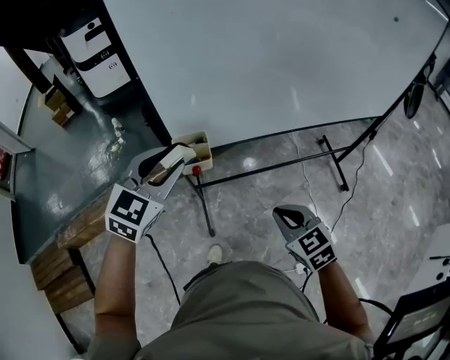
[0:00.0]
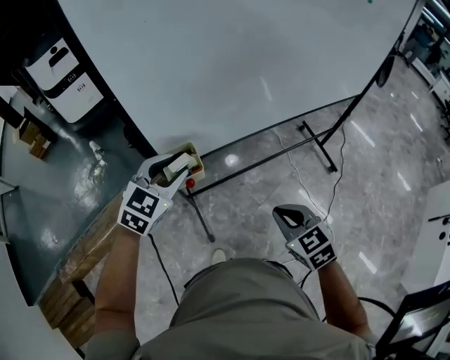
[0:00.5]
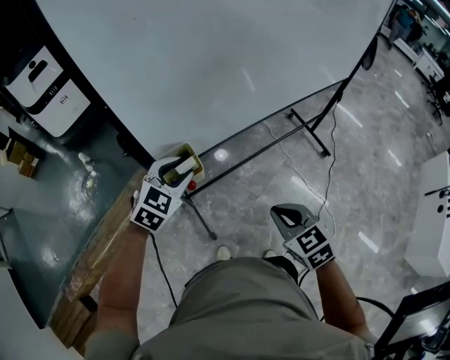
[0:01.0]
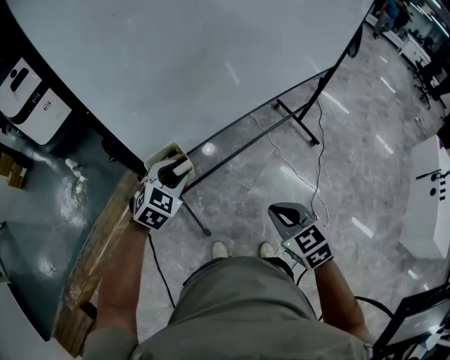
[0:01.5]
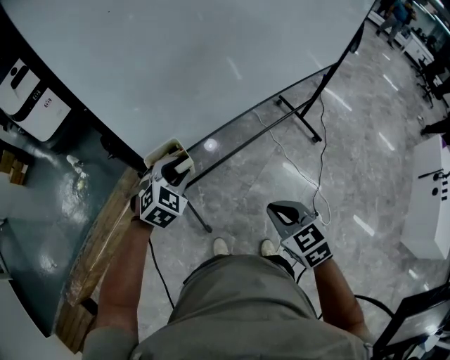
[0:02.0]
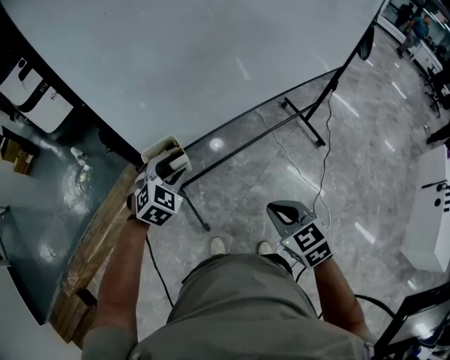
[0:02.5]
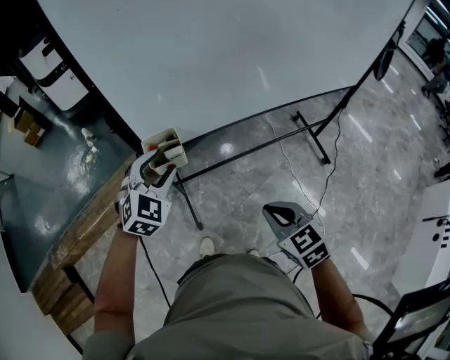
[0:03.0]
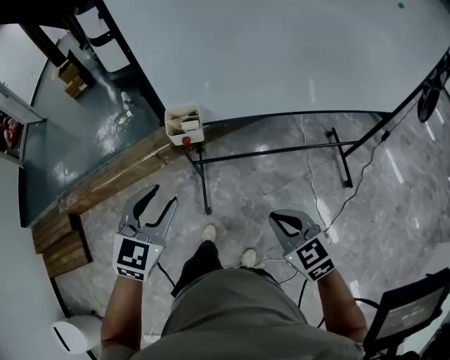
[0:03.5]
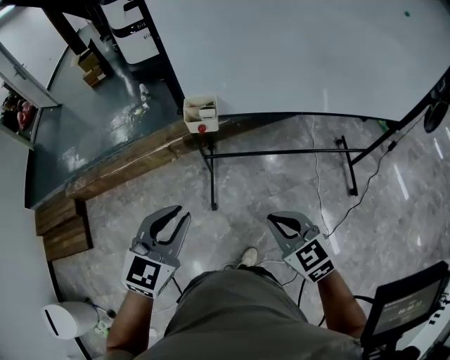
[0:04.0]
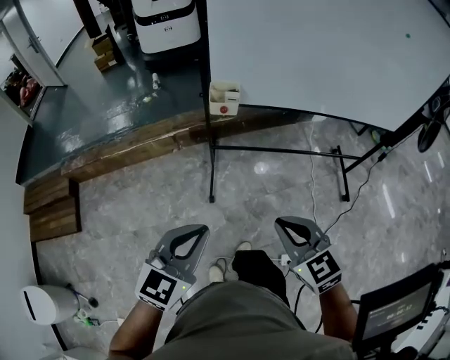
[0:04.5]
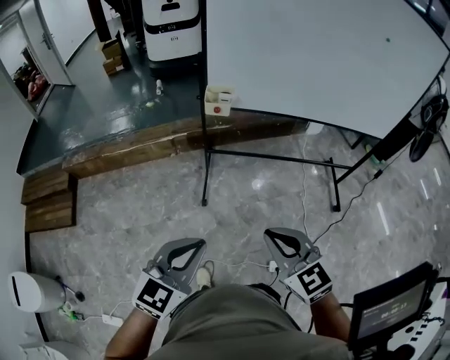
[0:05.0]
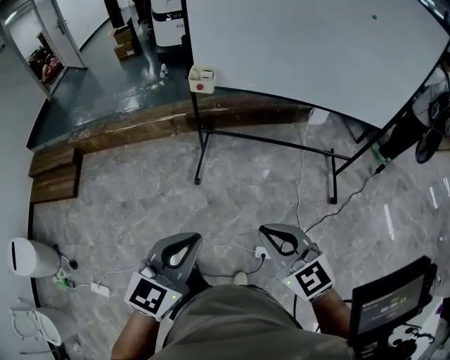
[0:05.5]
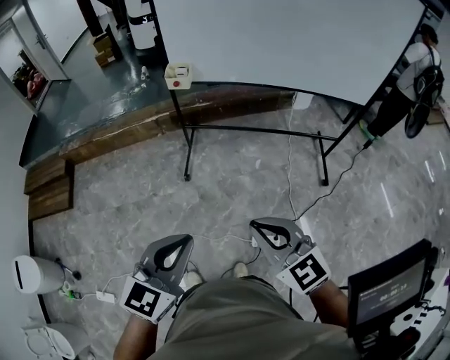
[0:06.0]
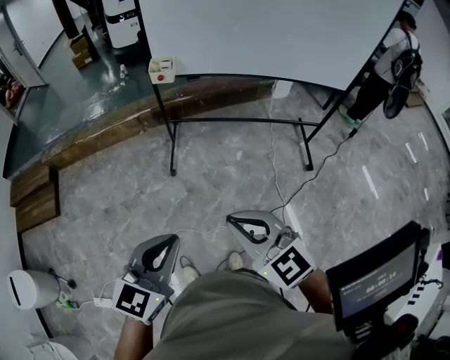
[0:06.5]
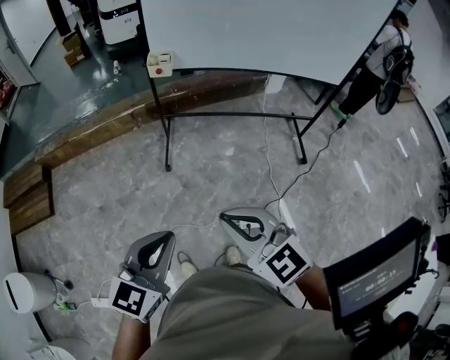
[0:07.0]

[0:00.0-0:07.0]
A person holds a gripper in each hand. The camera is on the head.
0:00.0 to 0:02.0: The right gripper rotates approximately 20 degrees. The left gripper shifts about 20 cm downward and forward, and changes its angle by some 30 degrees.
0:02.0 to 0:03.5: The left gripper moves roughly 25 cm, and swivels roughly 40 degrees. The right gripper ends up about 10 cm from where it was, and changes its angle by about 30 degrees.
0:03.5 to 0:05.0: The grippers both shift backward by some 30 cm. The left gripper closes.
0:05.0 to 0:07.0: The left gripper moves backward and to the right, approximately 20 cm, while the right gripper heads backward, covering some 15 cm.

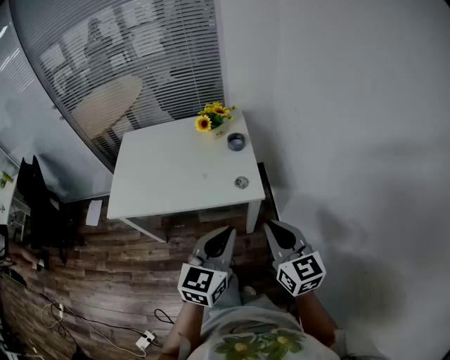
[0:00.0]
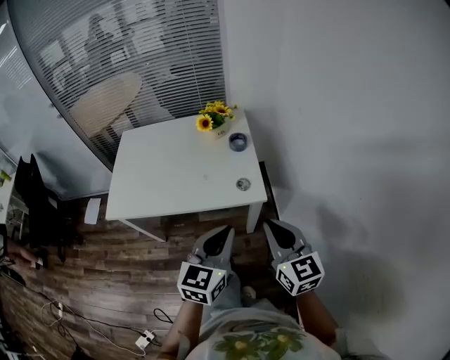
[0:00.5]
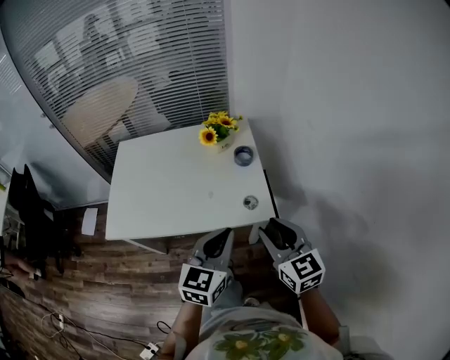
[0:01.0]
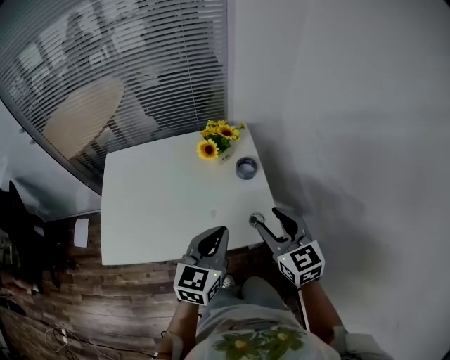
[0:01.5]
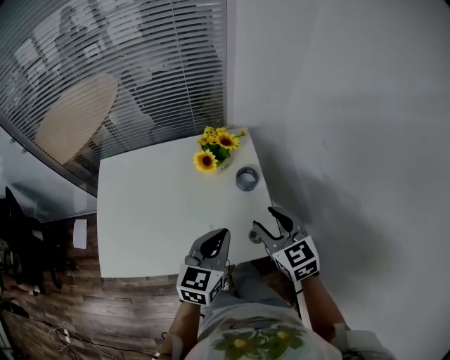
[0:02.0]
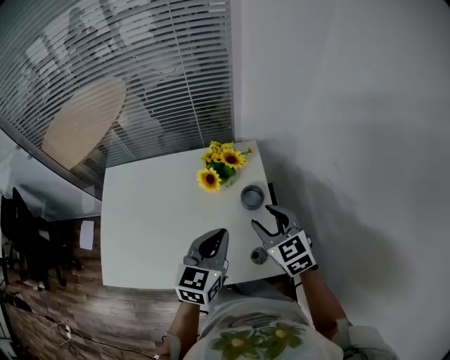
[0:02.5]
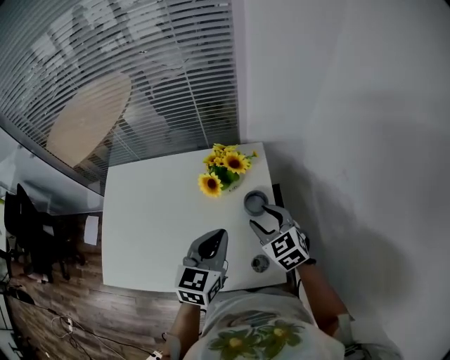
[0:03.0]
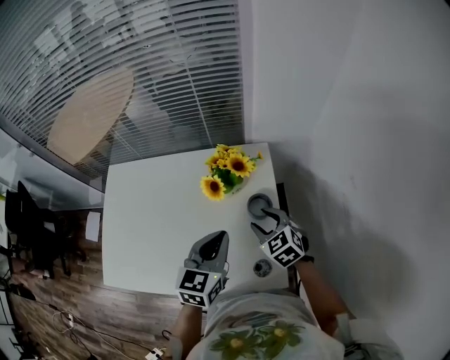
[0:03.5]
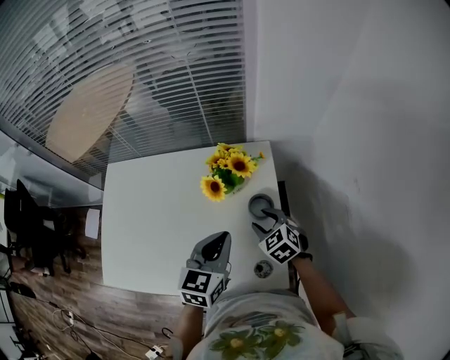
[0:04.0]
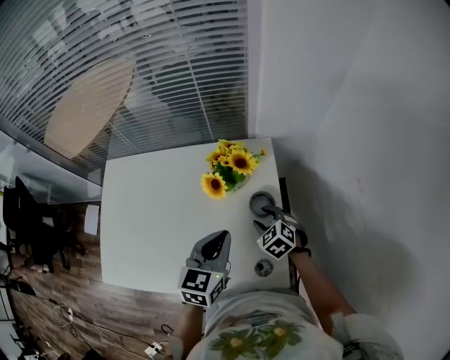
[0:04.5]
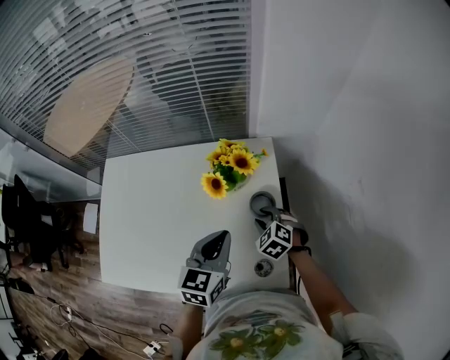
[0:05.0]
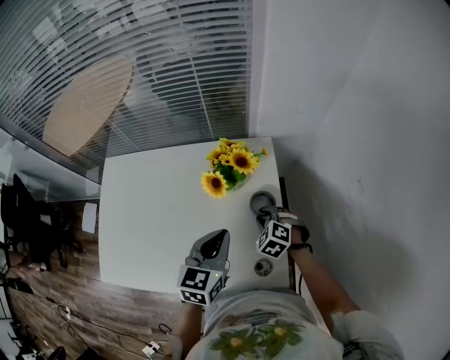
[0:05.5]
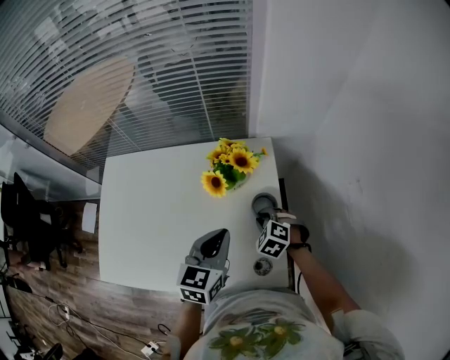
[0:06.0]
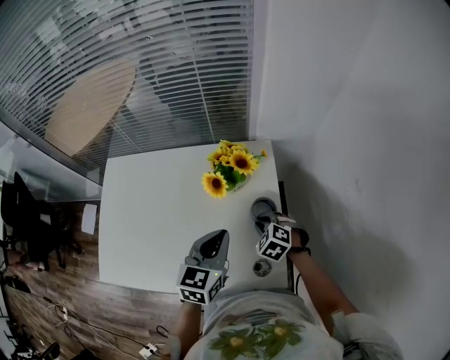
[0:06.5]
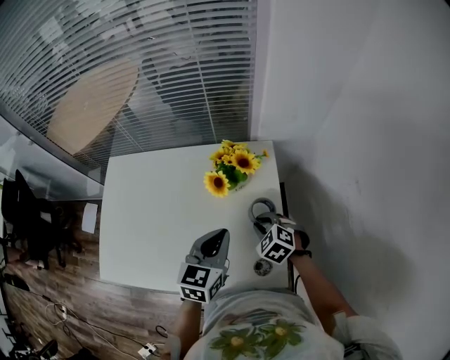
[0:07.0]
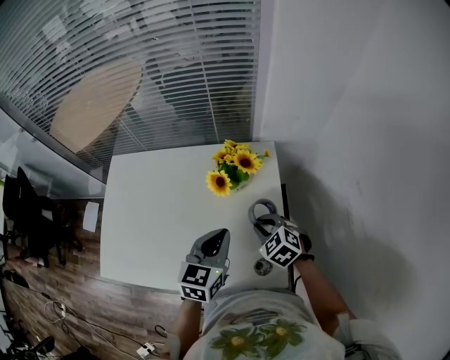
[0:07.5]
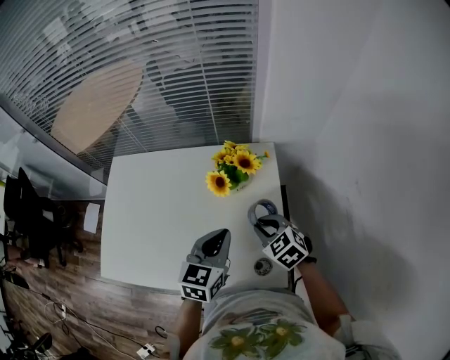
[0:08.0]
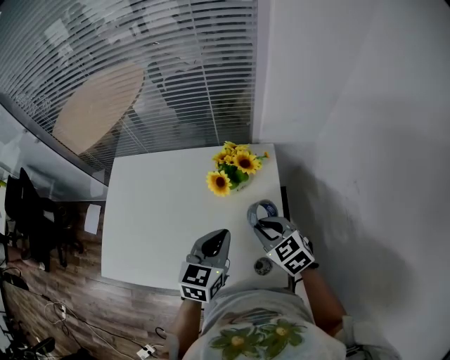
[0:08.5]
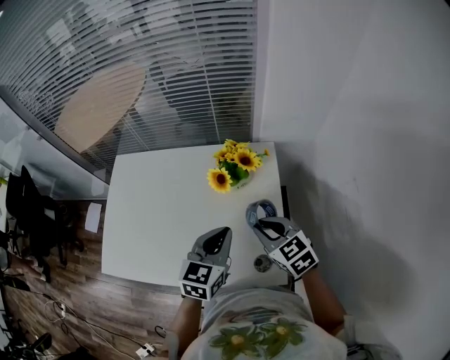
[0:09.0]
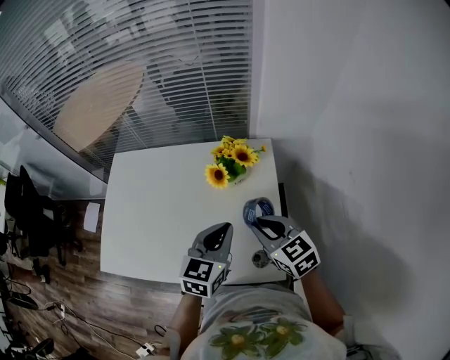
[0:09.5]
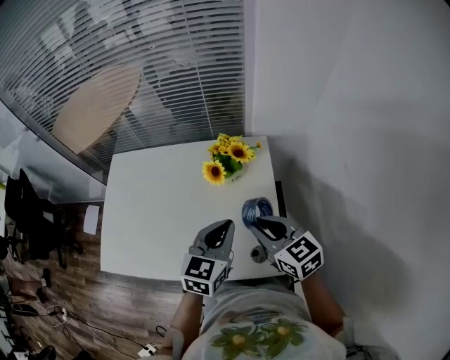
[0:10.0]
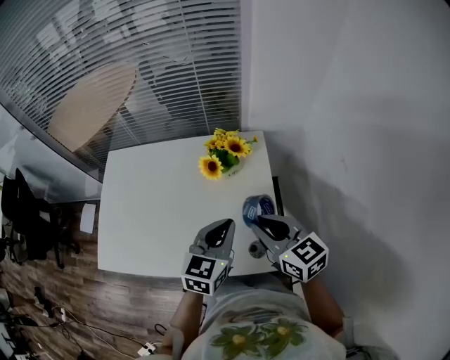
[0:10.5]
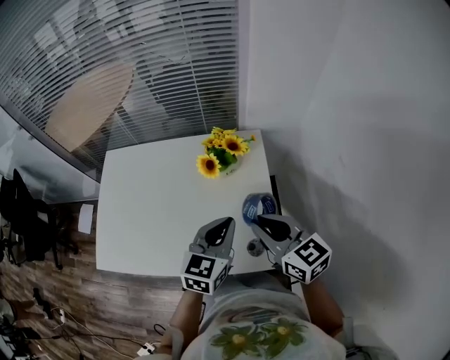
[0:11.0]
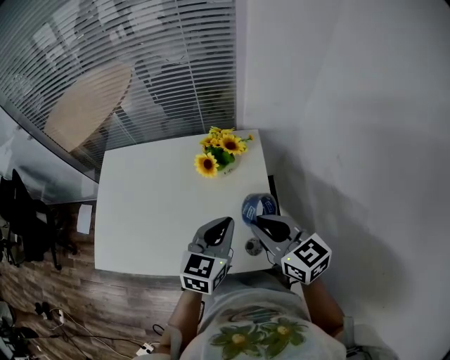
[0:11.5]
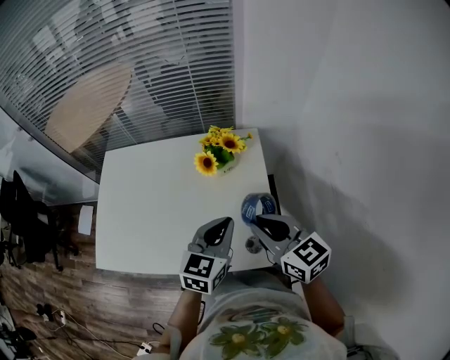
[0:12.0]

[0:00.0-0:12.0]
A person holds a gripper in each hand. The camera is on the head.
0:00.0 to 0:02.0: The grippers both shift forward by about 30 cm. The right gripper swivels approximately 20 degrees, and opens.
0:02.0 to 0:04.0: The right gripper goes roughly 25 cm downward and forward, and swivels roughly 30 degrees, while the left gripper goes roughly 15 cm forward and downward.
0:04.0 to 0:06.0: The right gripper goes roughly 5 cm downward, turns by some 30 degrees, and closes its fingers.
0:06.0 to 0:08.0: The right gripper goes approximately 10 cm upward, and rotates approximately 20 degrees.
0:08.0 to 0:10.0: The right gripper travels upward and backward by about 15 cm, and swivels roughly 30 degrees; the left gripper changes place by some 5 cm.
0:10.0 to 0:12.0: The right gripper moves some 5 cm.

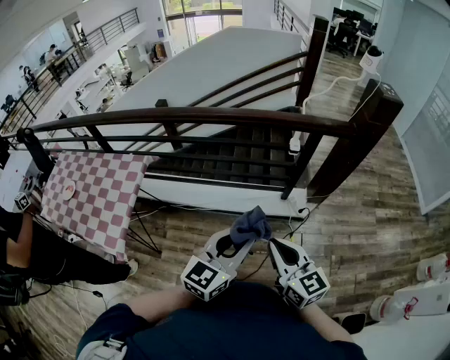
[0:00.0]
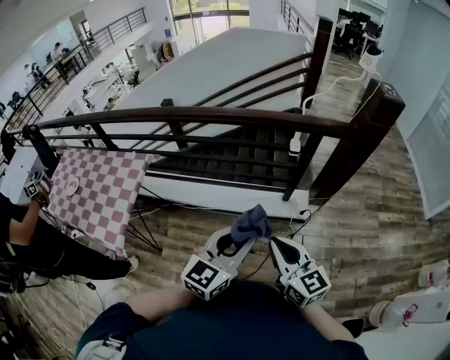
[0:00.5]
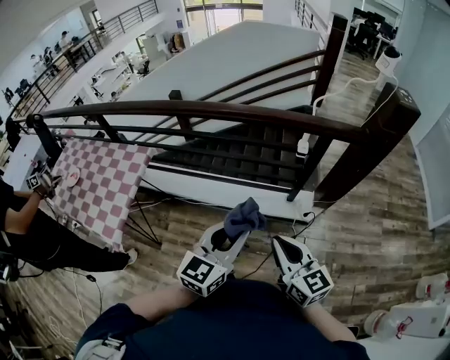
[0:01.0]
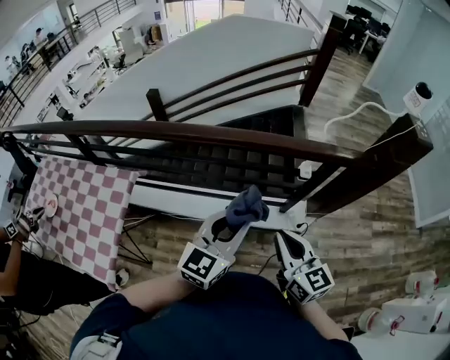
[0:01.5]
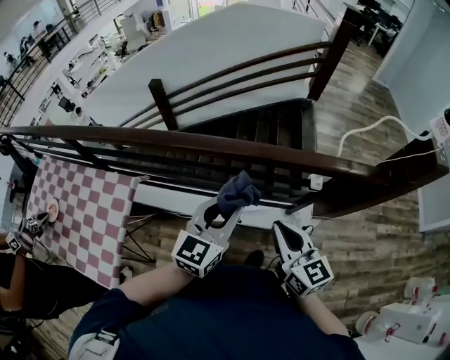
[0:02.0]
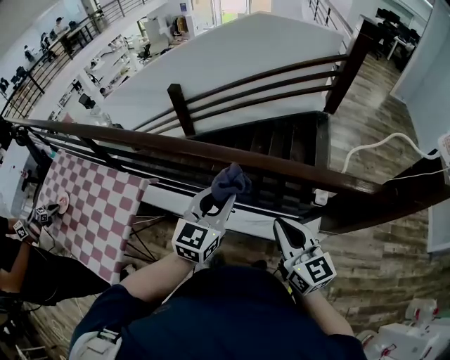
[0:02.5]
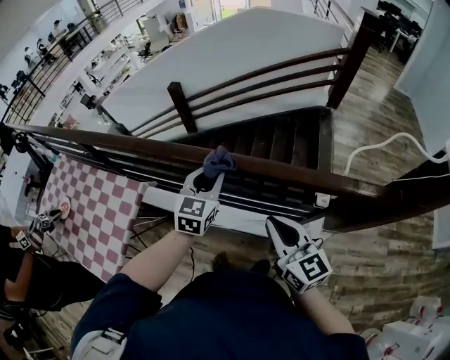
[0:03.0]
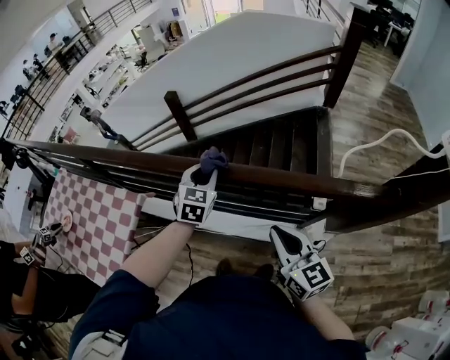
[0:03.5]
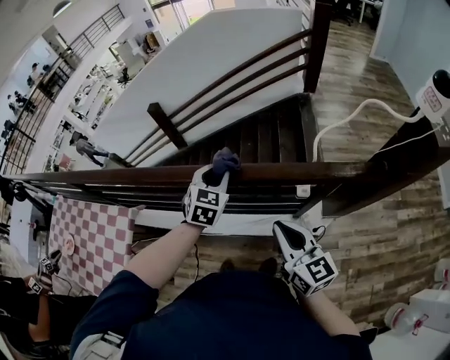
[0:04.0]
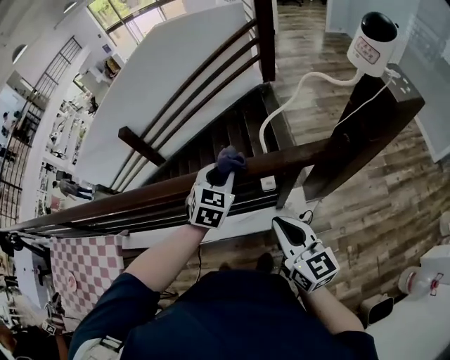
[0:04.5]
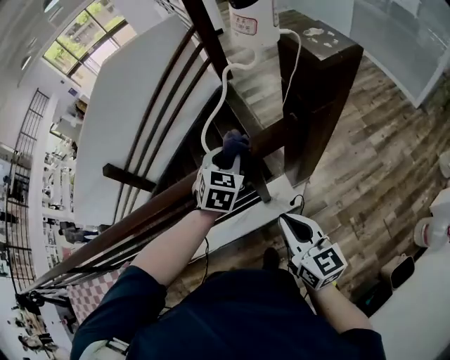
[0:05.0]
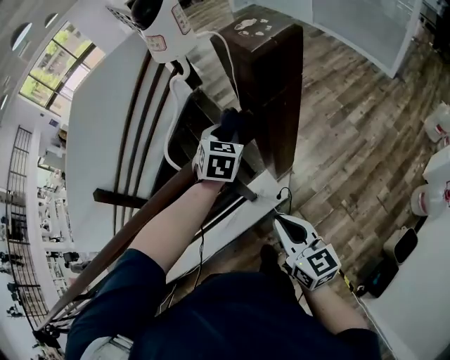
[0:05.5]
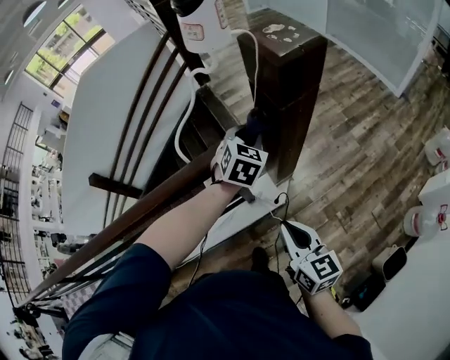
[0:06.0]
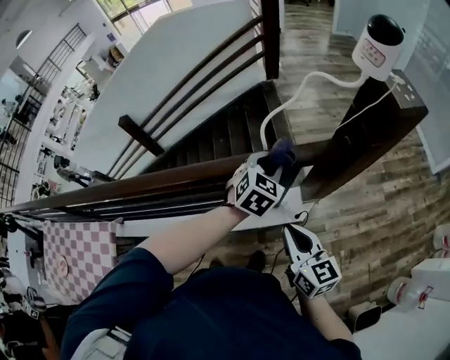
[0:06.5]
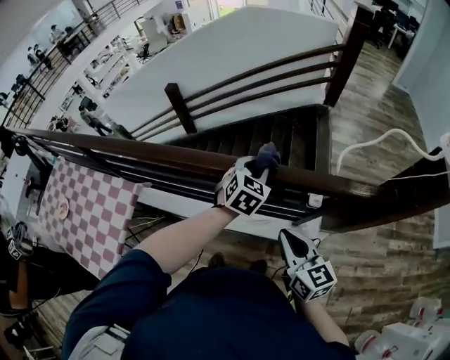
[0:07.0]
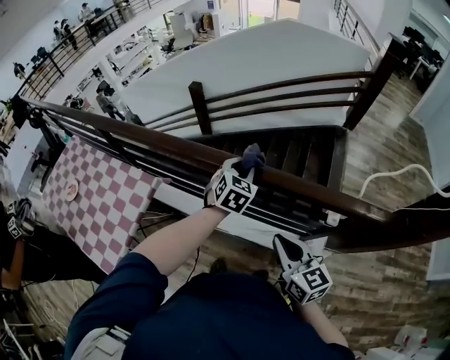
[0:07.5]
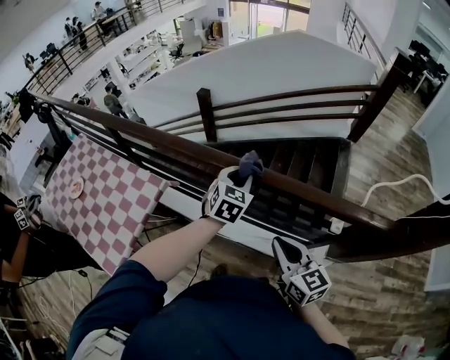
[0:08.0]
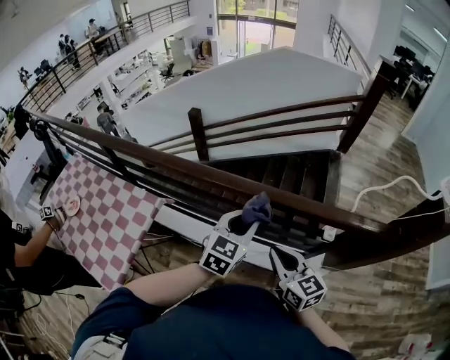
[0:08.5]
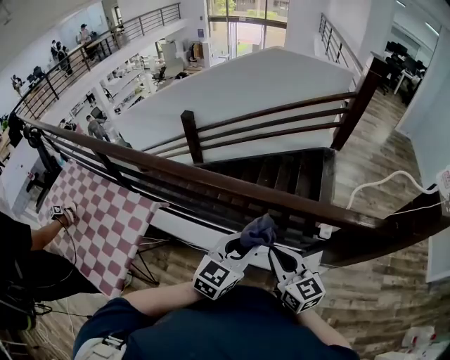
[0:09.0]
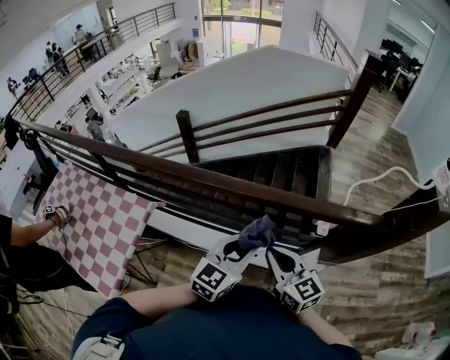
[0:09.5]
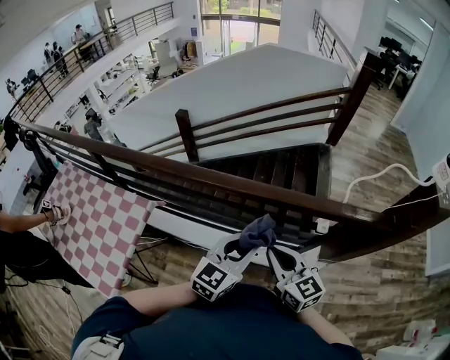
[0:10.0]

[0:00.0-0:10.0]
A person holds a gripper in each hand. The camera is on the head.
0:00.0 to 0:02.0: Both grippers move forward, approximately 35 cm.
0:02.0 to 0:04.0: The right gripper travels to the right by roughly 10 cm. The left gripper shifts roughly 25 cm forward, to the right and downward, and turns by roughly 30 degrees.
0:04.0 to 0:06.0: The left gripper ends up some 50 cm from where it was, and turns by approximately 40 degrees; the right gripper ends up some 30 cm from where it was, and turns by about 40 degrees.
0:06.0 to 0:08.0: Both grippers are carried approximately 50 cm. The right gripper turns by some 50 degrees; the left gripper changes its angle by about 50 degrees.
0:08.0 to 0:10.0: The left gripper heads backward and to the right, covering approximately 20 cm, and rotates about 30 degrees.
